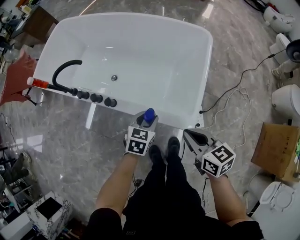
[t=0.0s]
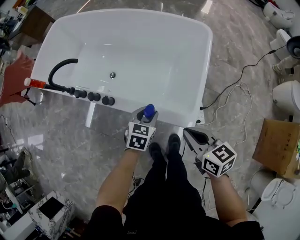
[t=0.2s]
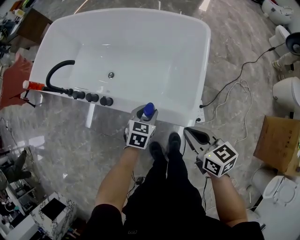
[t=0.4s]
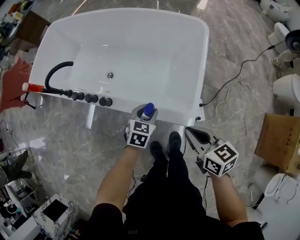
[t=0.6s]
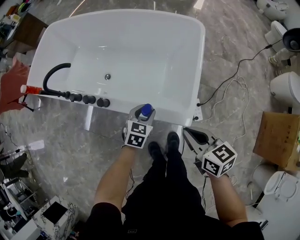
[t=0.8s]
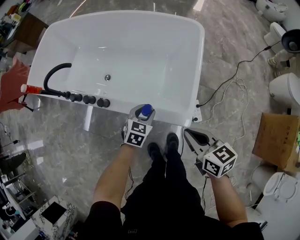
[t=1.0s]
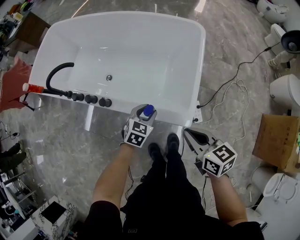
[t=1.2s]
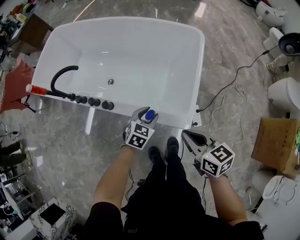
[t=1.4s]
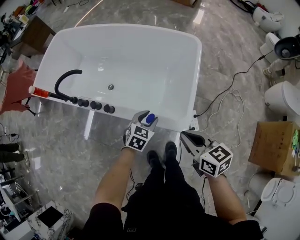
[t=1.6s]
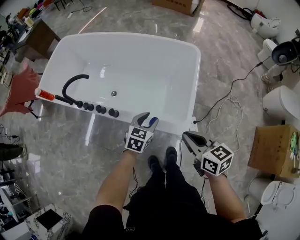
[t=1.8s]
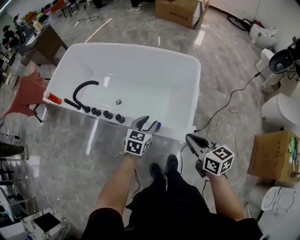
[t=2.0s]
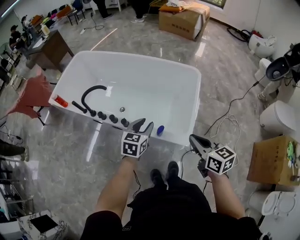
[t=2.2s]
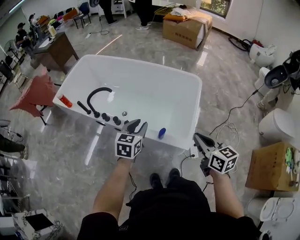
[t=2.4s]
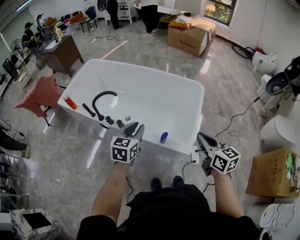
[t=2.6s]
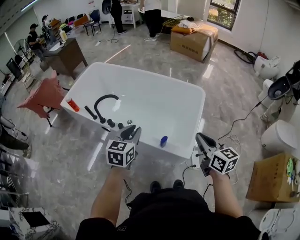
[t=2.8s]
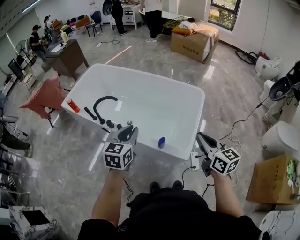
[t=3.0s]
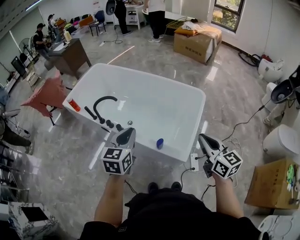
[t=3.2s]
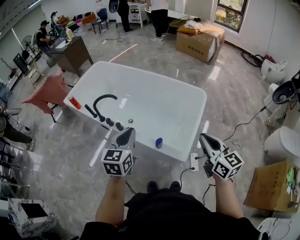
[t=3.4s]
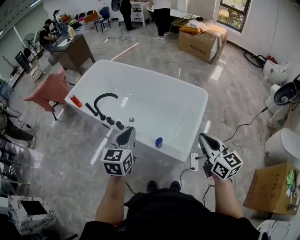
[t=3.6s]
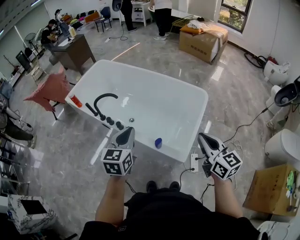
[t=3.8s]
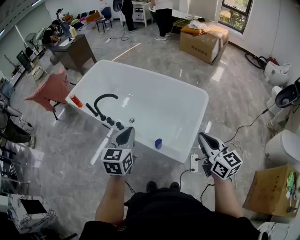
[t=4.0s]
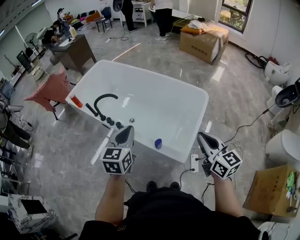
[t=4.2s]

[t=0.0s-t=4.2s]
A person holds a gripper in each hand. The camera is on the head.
t=0.0s to t=1.4s: The grippers move only a little.
t=1.4s to t=2.8s: The right gripper moves upward, roughly 20 cm, and changes its angle by about 20 degrees; the left gripper goes roughly 35 cm upward and to the left, rotates approximately 30 degrees, and closes.
t=2.8s to t=4.2s: The left gripper shifts by approximately 5 cm. The right gripper moves to the right, approximately 5 cm.

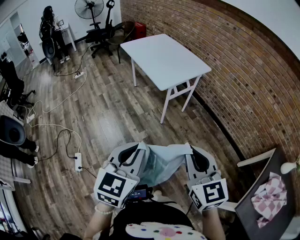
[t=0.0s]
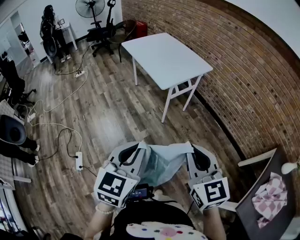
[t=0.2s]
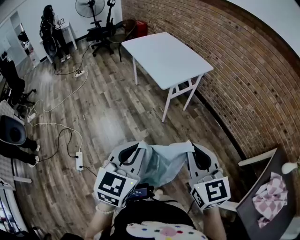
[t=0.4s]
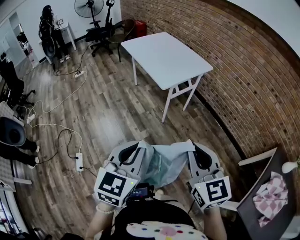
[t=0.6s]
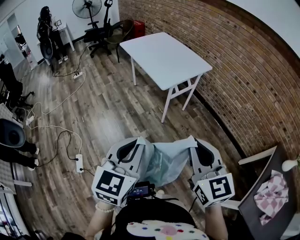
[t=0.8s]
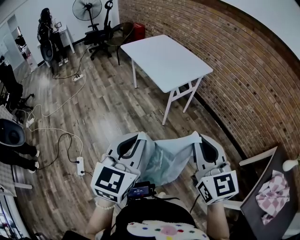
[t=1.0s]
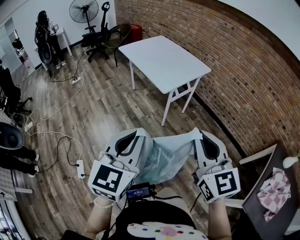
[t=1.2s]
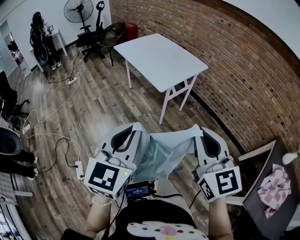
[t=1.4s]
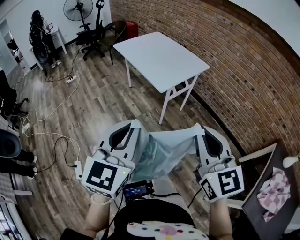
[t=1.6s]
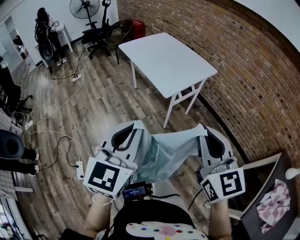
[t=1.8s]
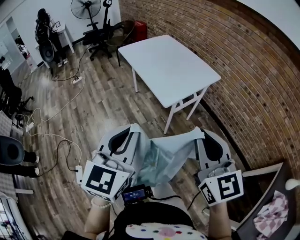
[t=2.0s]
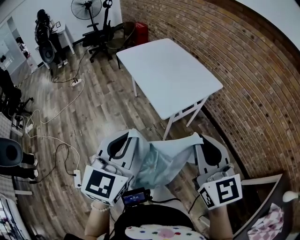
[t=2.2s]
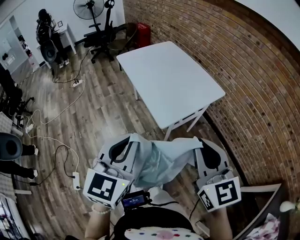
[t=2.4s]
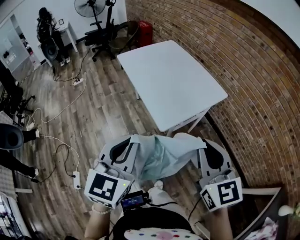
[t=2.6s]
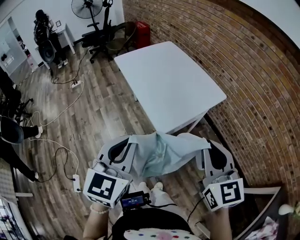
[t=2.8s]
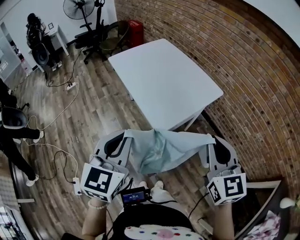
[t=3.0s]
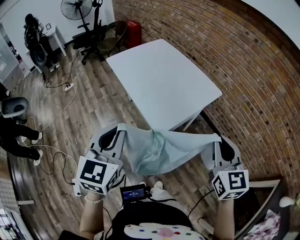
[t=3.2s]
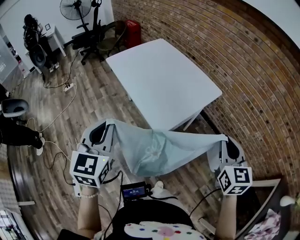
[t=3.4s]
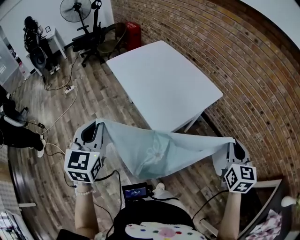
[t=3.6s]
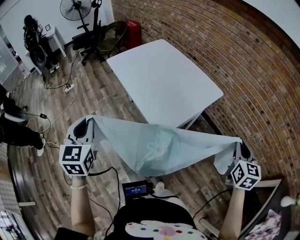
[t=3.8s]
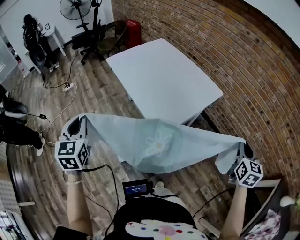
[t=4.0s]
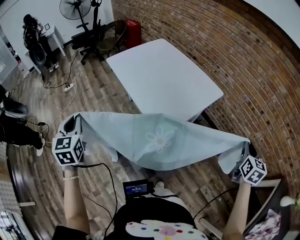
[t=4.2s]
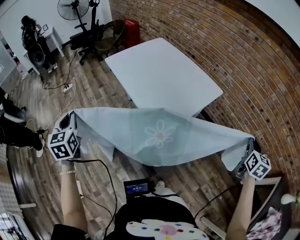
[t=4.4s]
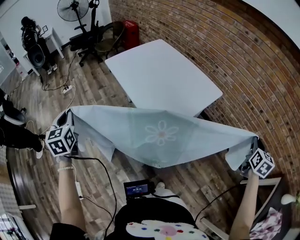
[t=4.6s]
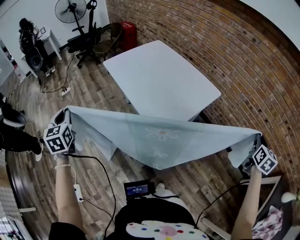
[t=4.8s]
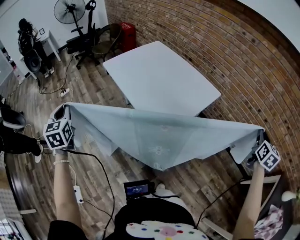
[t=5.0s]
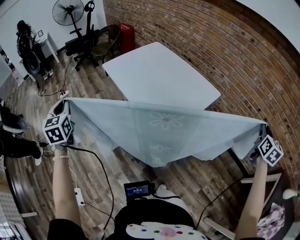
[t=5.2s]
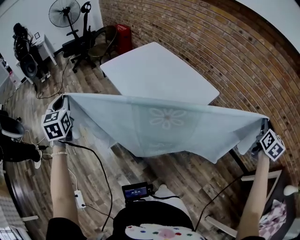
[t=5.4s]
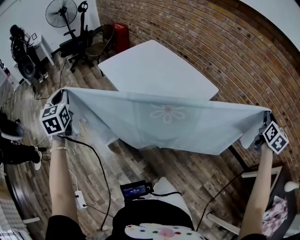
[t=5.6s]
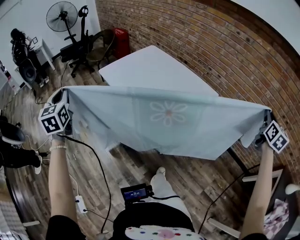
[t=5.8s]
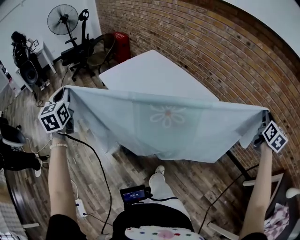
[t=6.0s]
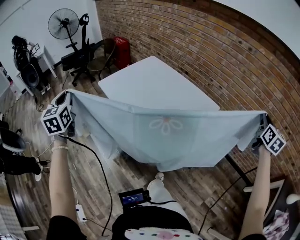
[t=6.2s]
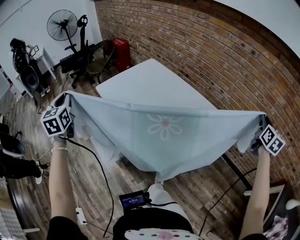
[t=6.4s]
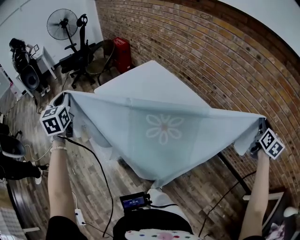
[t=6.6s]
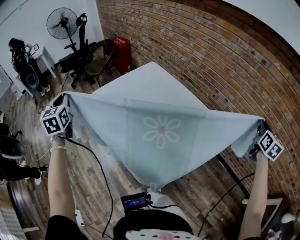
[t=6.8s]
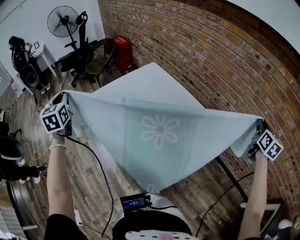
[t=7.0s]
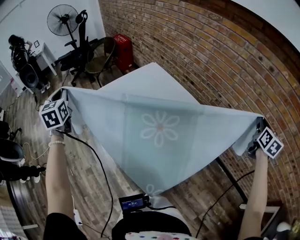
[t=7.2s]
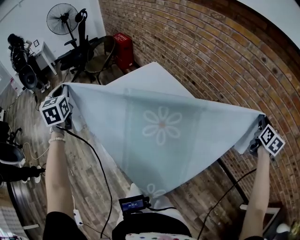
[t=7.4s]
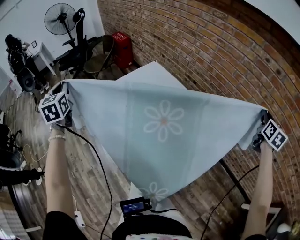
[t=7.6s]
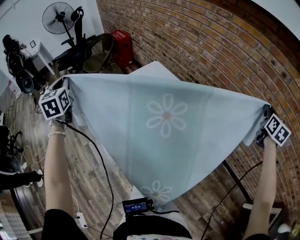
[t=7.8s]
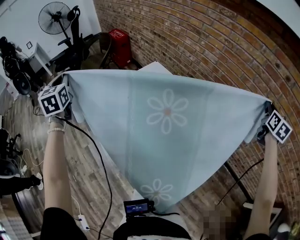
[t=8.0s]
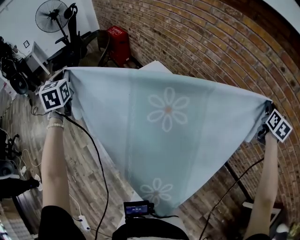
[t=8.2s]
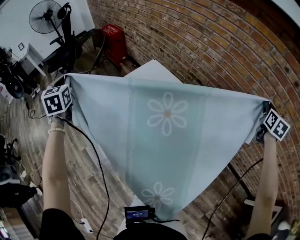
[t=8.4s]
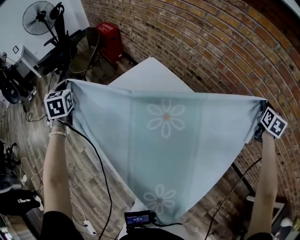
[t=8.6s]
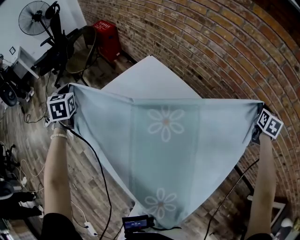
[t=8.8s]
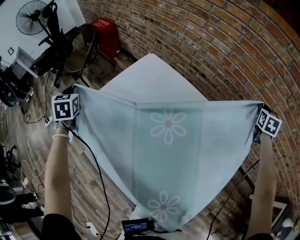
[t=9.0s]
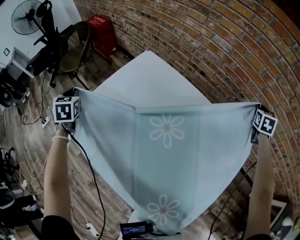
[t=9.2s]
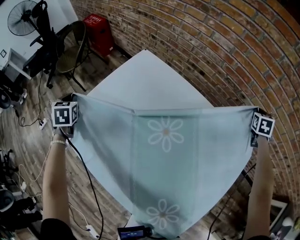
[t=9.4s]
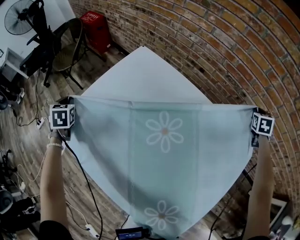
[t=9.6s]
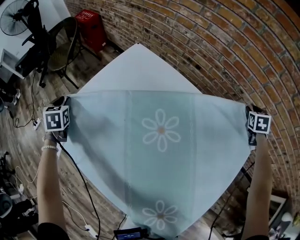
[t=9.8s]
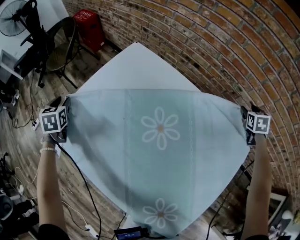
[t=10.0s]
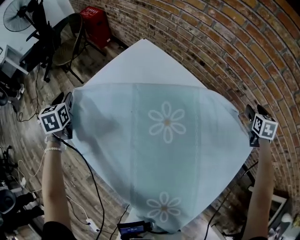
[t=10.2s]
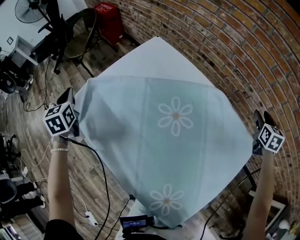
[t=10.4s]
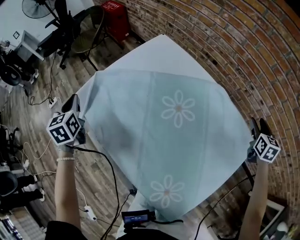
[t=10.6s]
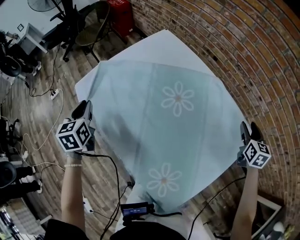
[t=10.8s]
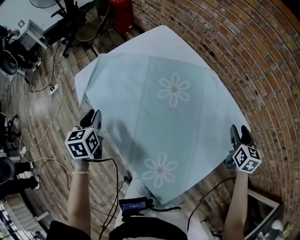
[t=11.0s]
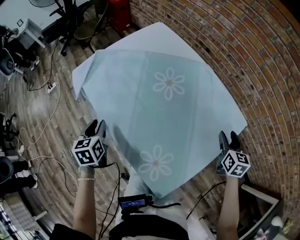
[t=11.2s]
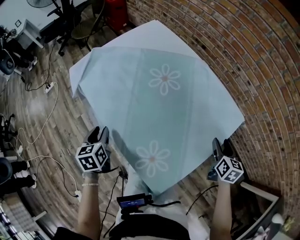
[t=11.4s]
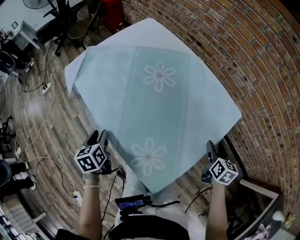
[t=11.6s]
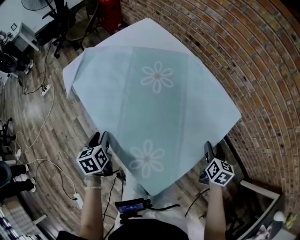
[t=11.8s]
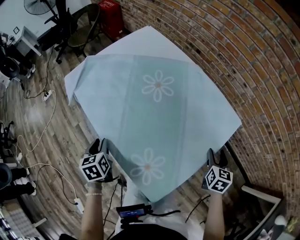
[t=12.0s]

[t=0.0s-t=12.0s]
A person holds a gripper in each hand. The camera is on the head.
t=0.0s to t=1.6s: The two grippers go about 10 cm forward and upward.
t=1.6s to t=3.0s: The grippers both shift forward by some 30 cm.
t=3.0s to t=4.4s: The right gripper is displaced to the right by about 25 cm, and turns by approximately 40 degrees, while the left gripper goes about 30 cm to the left, and swivels about 30 degrees.
t=4.4s to t=6.0s: The right gripper travels upward and forward by roughly 15 cm. Meanwhile the left gripper heads forward and upward, covering about 20 cm.
t=6.0s to t=7.6s: The grippers both shift forward by some 30 cm.
t=7.6s to t=9.0s: Both grippers move forward and downward, some 25 cm. The left gripper changes its angle by some 30 degrees; the right gripper rotates some 30 degrees.
t=9.0s to t=10.4s: The left gripper travels backward by approximately 5 cm, goes downward and returns, roughly 10 cm each way, and opens, then closes once more. Meanwhile the right gripper is displaced downward and backward by roughly 10 cm, and opens up.
t=10.4s to t=12.0s: The right gripper heads backward, covering roughly 30 cm. The left gripper heads backward and to the right, covering roughly 40 cm, turns by about 20 degrees, and opens.

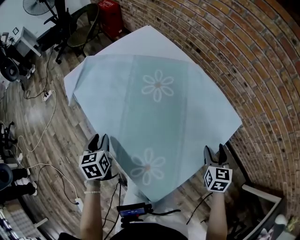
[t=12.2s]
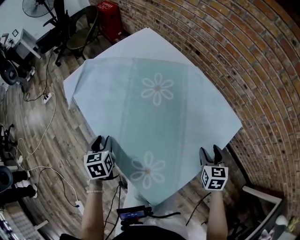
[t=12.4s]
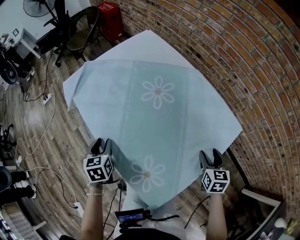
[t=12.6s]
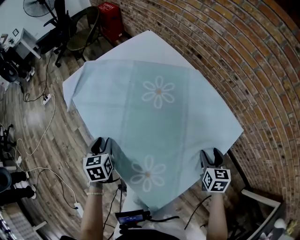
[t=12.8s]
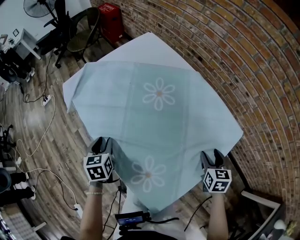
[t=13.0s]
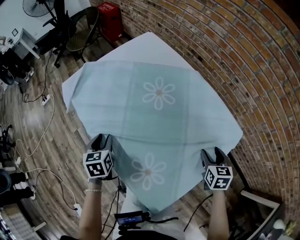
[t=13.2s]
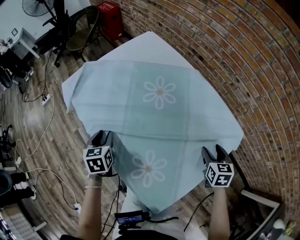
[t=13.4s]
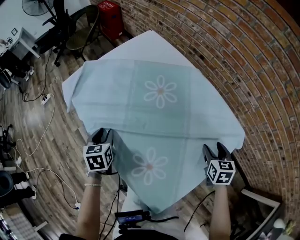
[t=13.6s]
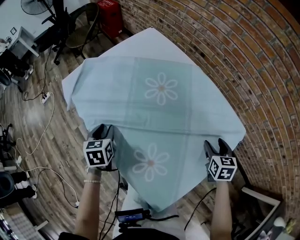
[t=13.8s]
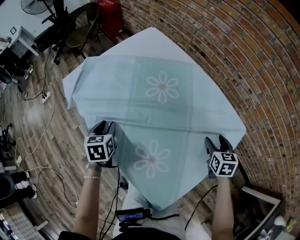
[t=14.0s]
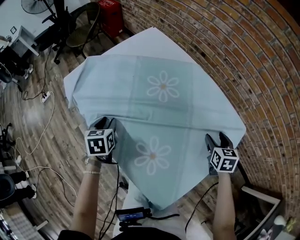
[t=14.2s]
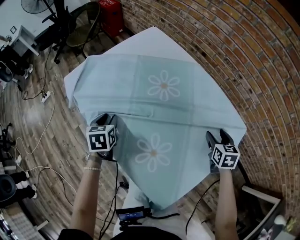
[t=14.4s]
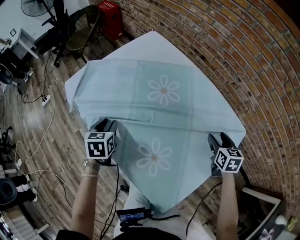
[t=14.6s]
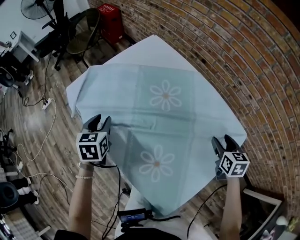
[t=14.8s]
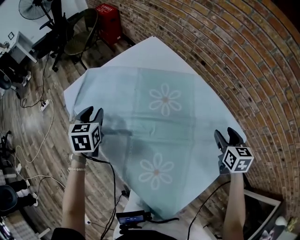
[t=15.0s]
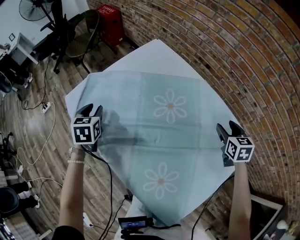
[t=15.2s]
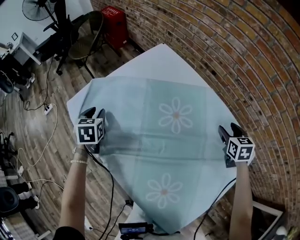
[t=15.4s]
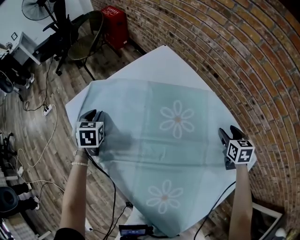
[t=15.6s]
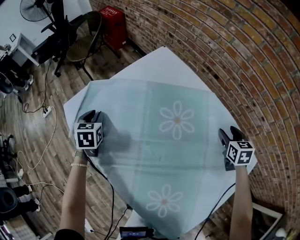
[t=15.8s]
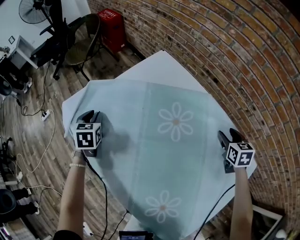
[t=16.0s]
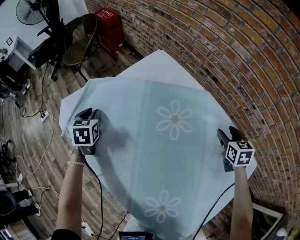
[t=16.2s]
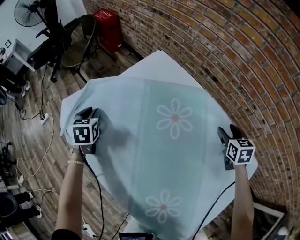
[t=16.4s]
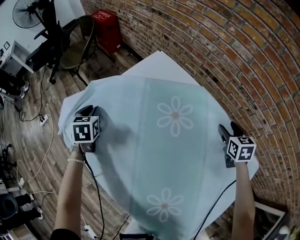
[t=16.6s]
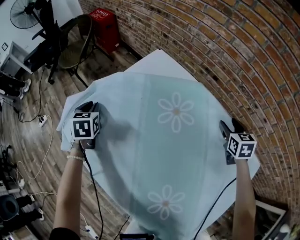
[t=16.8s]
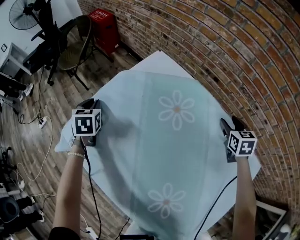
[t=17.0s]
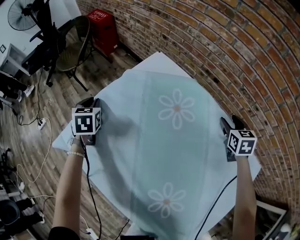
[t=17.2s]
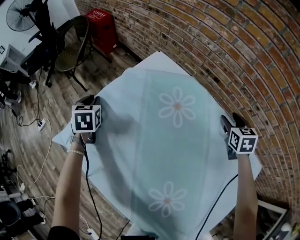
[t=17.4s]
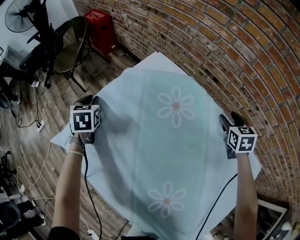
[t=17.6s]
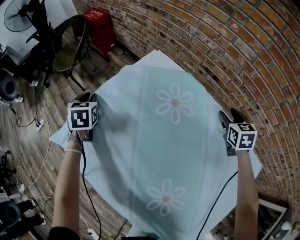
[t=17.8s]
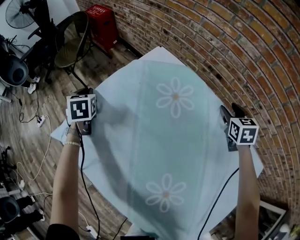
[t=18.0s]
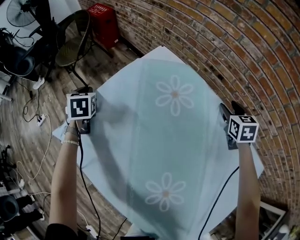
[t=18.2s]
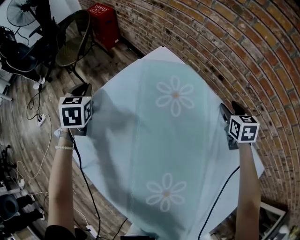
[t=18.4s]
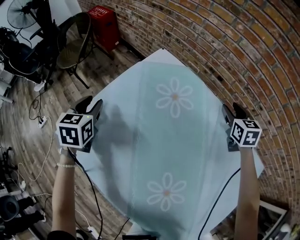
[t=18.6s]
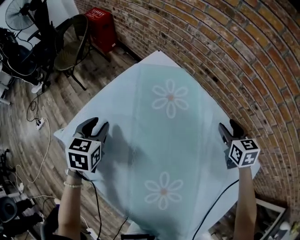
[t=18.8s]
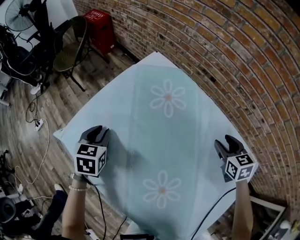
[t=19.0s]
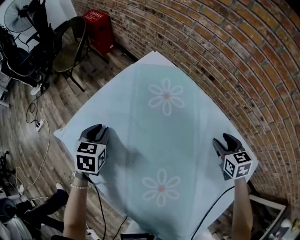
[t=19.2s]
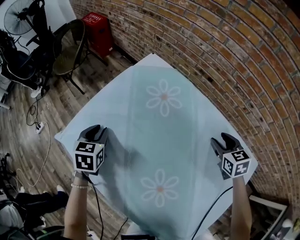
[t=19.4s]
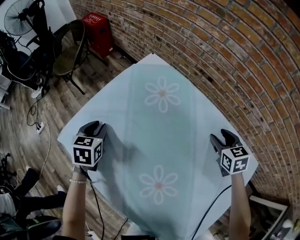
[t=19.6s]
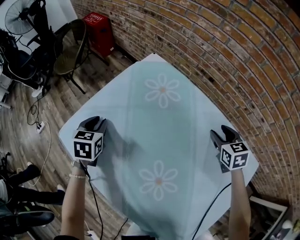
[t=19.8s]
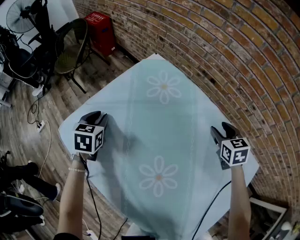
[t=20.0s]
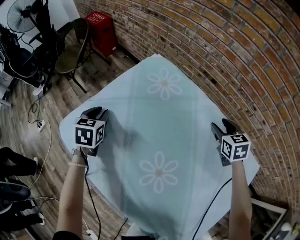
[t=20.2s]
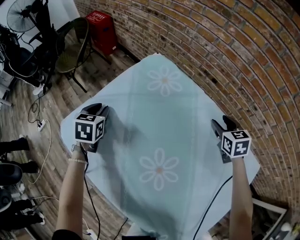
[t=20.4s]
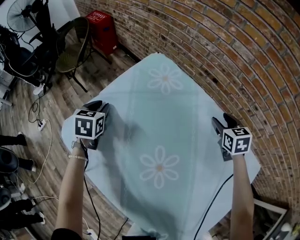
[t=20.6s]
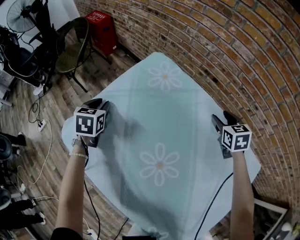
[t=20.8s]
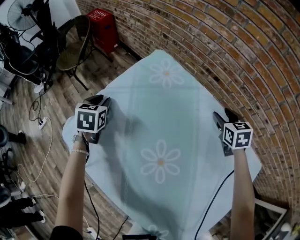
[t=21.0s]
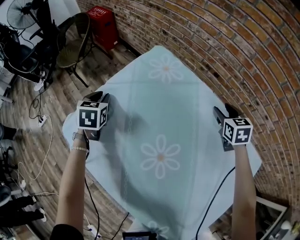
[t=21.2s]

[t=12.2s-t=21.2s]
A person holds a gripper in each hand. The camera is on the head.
t=12.2s to t=13.8s: Both grippers travel together forward, some 10 cm.
t=13.8s to t=15.2s: The right gripper travels forward by about 15 cm; the left gripper goes about 20 cm forward and to the left.
t=15.2s to t=16.6s: The grippers both shift forward by some 10 cm.
t=16.6s to t=18.2s: The two grippers go approximately 10 cm forward.
t=18.2s to t=19.8s: The left gripper shifts approximately 15 cm backward and to the right, and opens its fingers; the right gripper is displaced backward by approximately 10 cm.
t=19.8s to t=21.2s: Both grippers travel together forward, about 5 cm.
